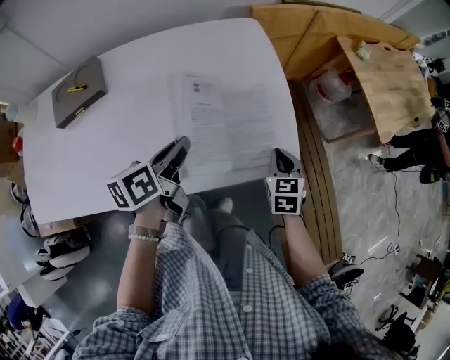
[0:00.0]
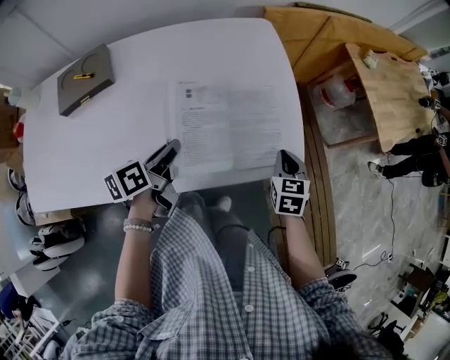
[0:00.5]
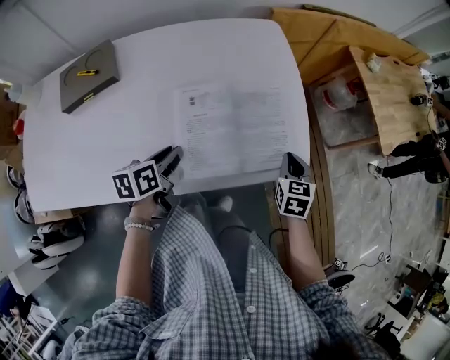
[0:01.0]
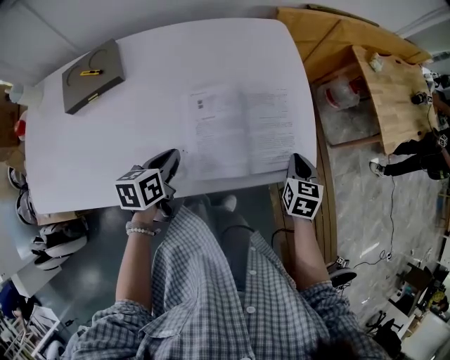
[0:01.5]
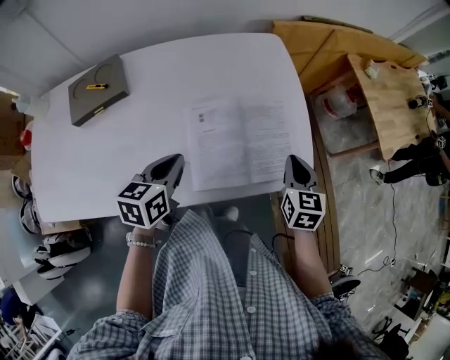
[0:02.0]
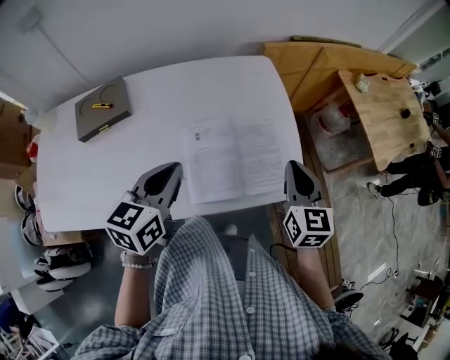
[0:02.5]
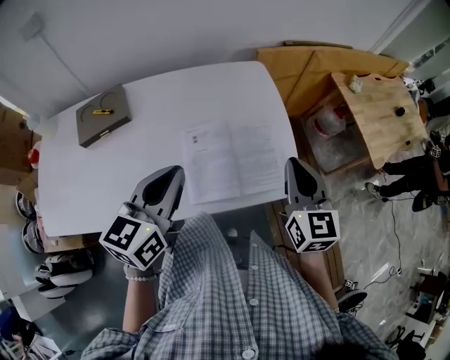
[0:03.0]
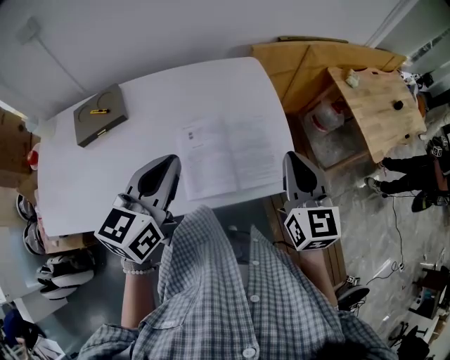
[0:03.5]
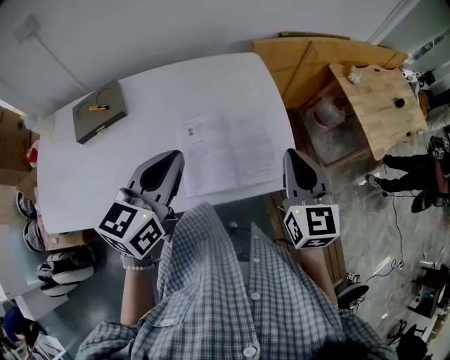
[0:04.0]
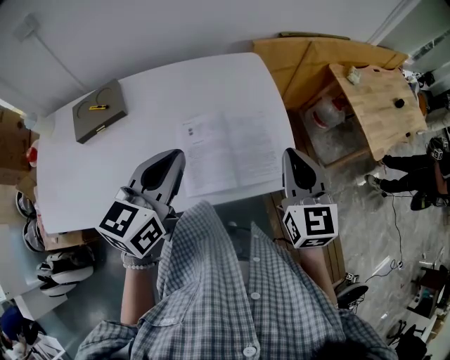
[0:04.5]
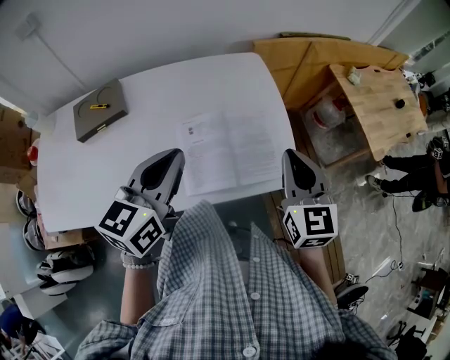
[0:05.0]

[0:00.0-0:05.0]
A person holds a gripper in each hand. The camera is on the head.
0:00.0 to 0:02.5: The right gripper moves upward, some 15 cm, and changes its angle by roughly 20 degrees, while the left gripper is displaced upward and to the left by some 10 cm, and turns by roughly 40 degrees.
0:02.5 to 0:05.0: Both grippers move upward, approximately 5 cm.

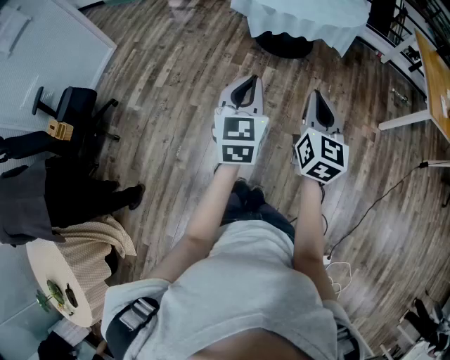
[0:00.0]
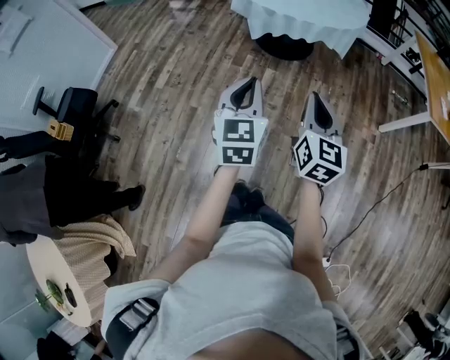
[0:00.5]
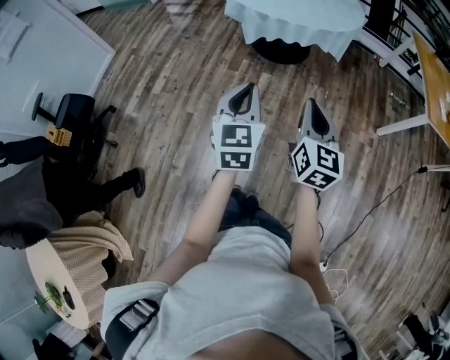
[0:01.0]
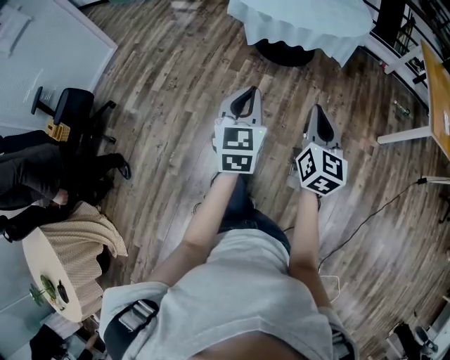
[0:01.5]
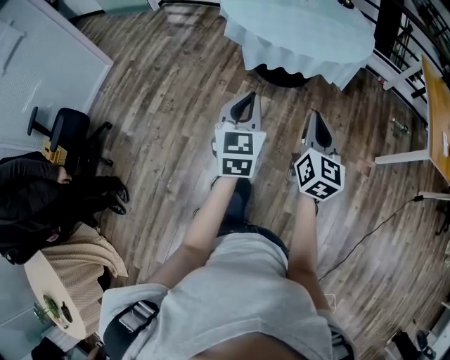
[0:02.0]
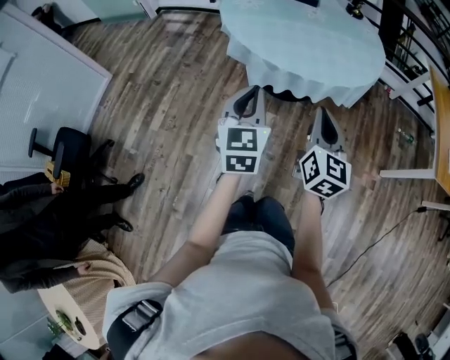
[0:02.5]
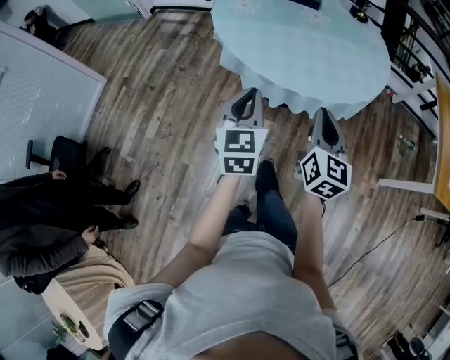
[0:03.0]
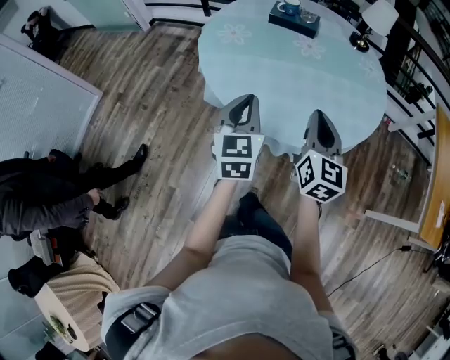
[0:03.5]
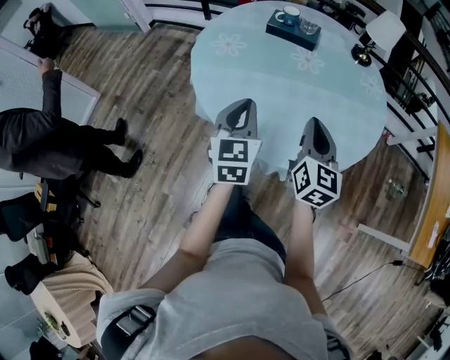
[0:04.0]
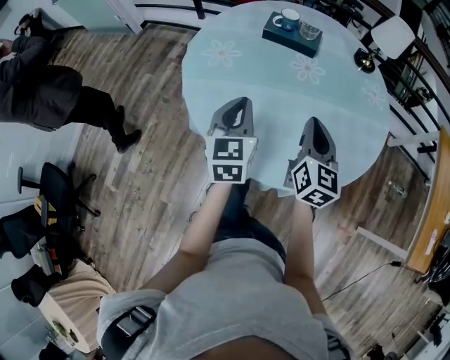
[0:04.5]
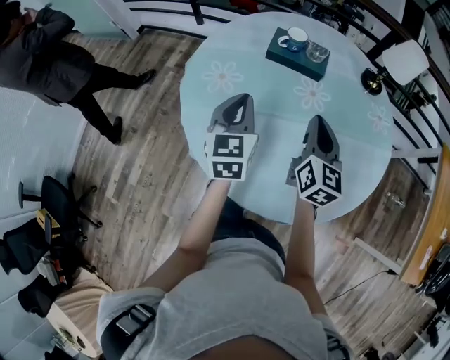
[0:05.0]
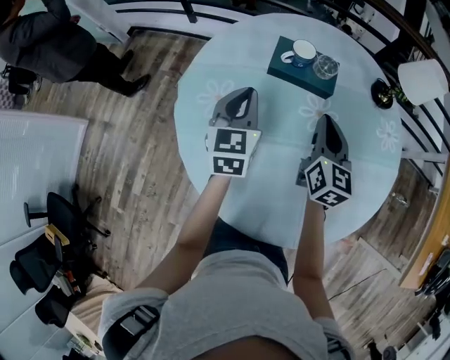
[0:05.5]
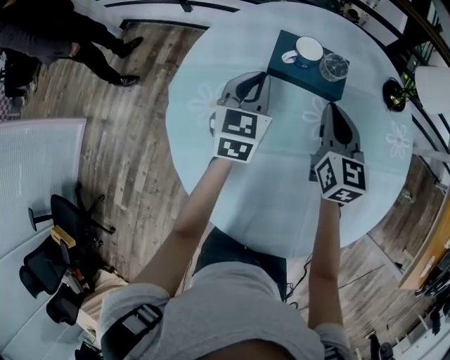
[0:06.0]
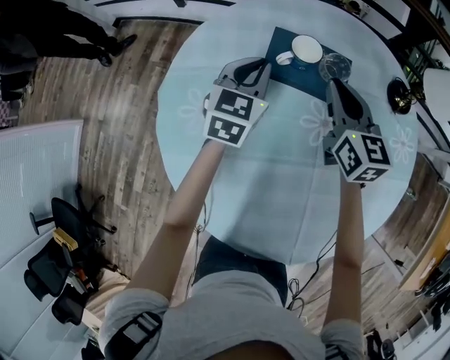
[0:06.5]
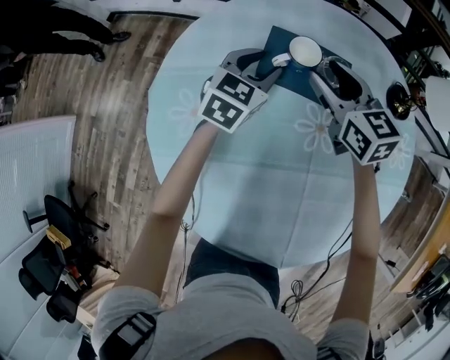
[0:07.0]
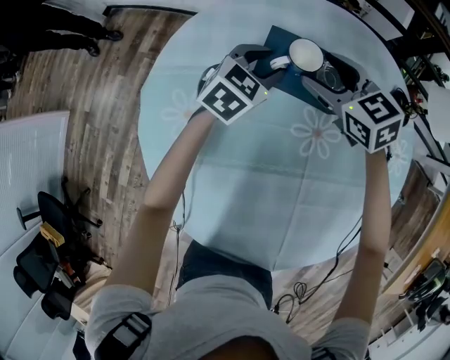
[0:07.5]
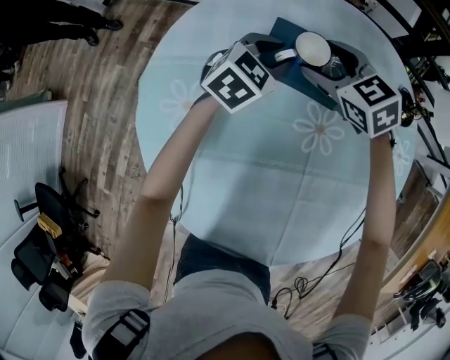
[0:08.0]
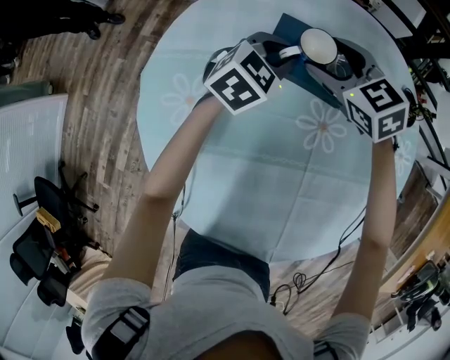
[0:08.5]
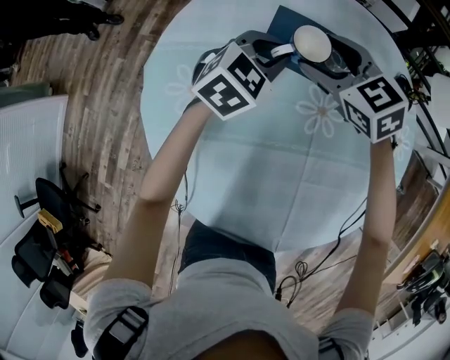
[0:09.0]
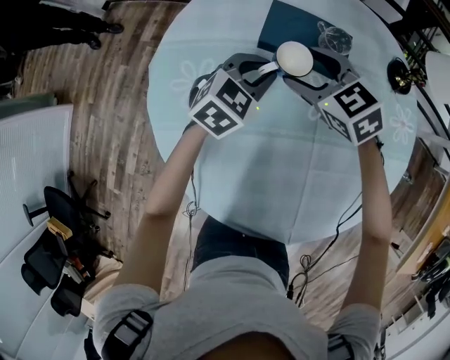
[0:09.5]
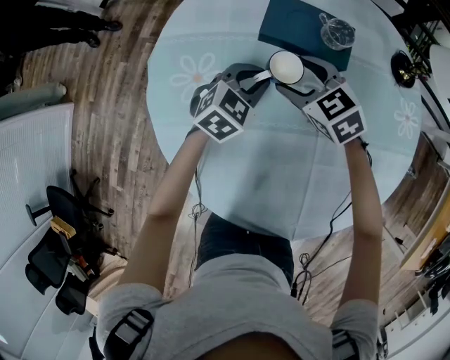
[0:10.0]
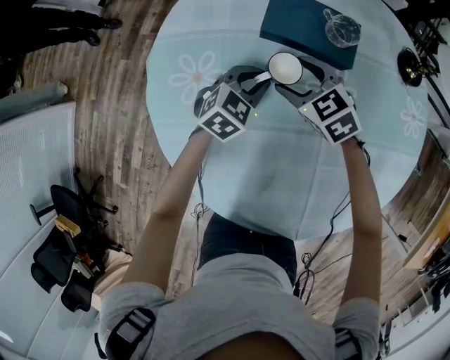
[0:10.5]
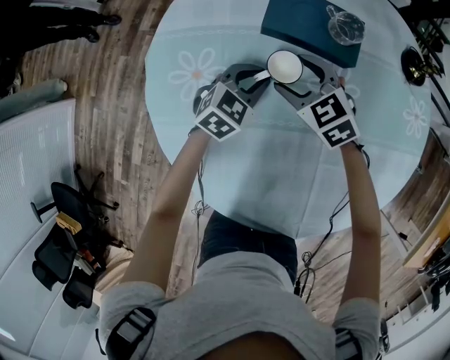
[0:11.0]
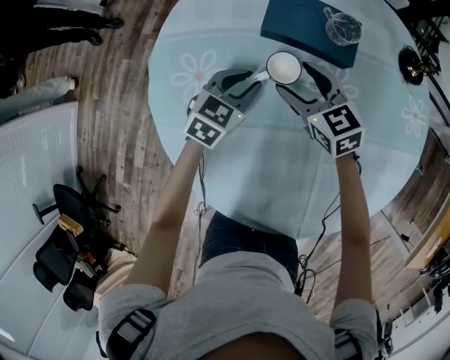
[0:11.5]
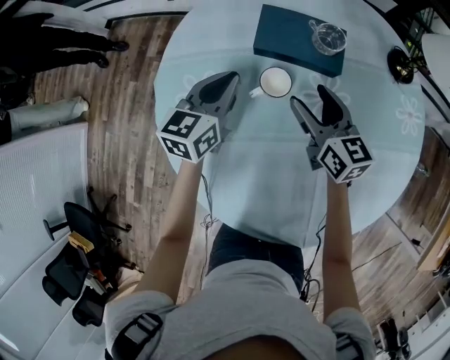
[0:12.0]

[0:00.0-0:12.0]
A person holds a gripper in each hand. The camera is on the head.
0:00.0 to 0:02.0: Both grippers travel together forward, some 20 cm.
0:02.0 to 0:04.0: Both grippers are carried forward, approximately 50 cm.
0:04.0 to 0:06.0: The two grippers travel together, forward, about 40 cm.
0:06.0 to 0:08.0: The left gripper goes some 15 cm forward, downward and to the right, swivels some 30 degrees, and opens its fingers. The right gripper moves forward and downward, approximately 15 cm, rotates about 50 degrees, and opens.
0:08.0 to 0:10.0: The two grippers go roughly 15 cm backward.
0:10.0 to 0:12.0: The right gripper shifts roughly 5 cm to the right, and turns by approximately 50 degrees, while the left gripper heads upward and to the left, covering approximately 10 cm, and changes its angle by some 40 degrees.

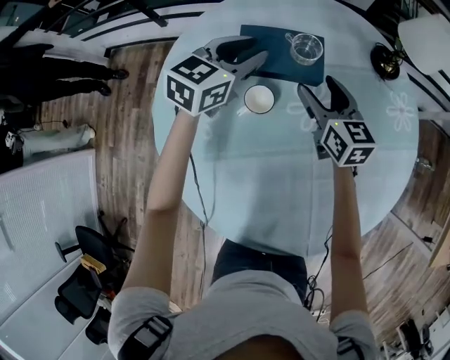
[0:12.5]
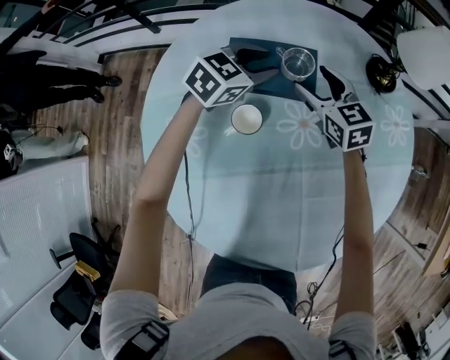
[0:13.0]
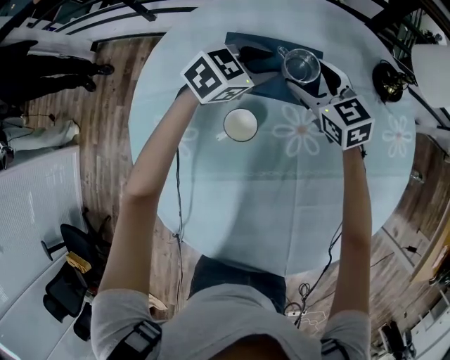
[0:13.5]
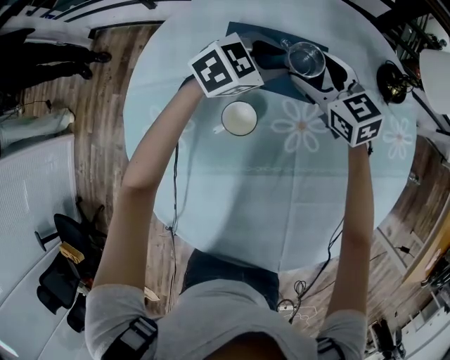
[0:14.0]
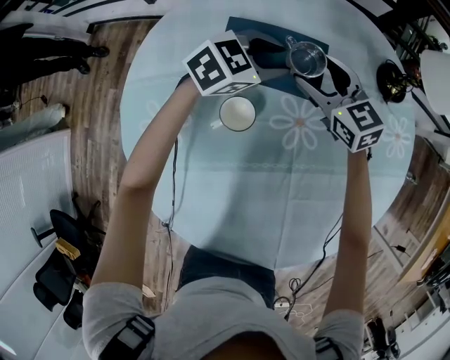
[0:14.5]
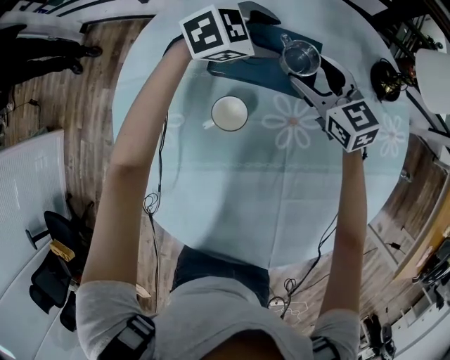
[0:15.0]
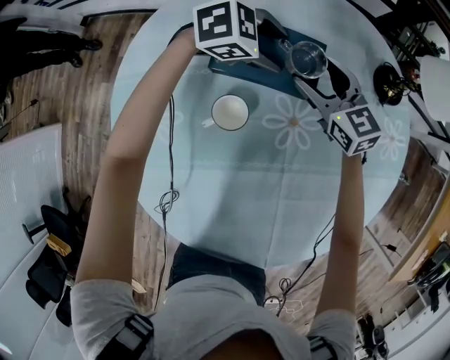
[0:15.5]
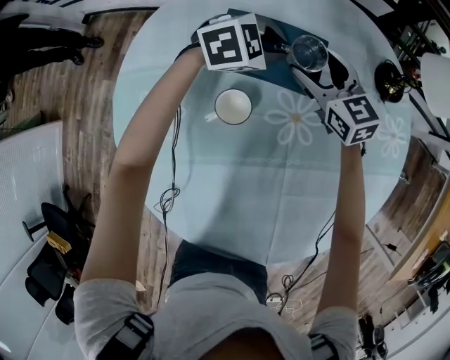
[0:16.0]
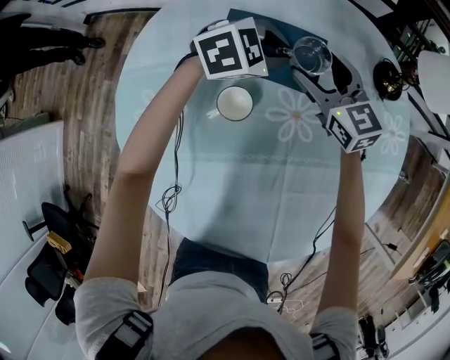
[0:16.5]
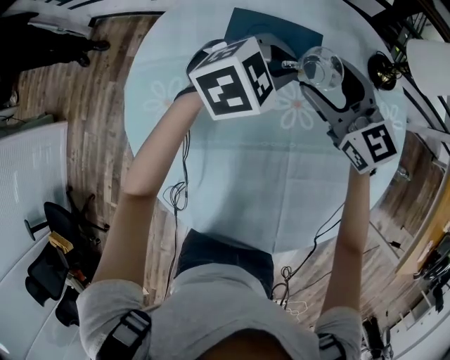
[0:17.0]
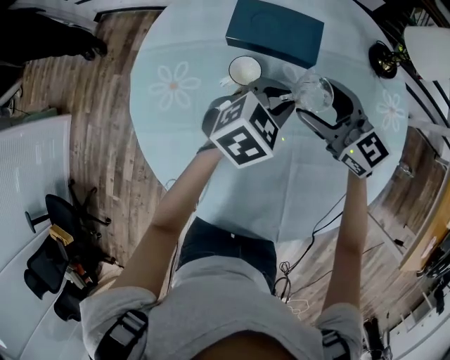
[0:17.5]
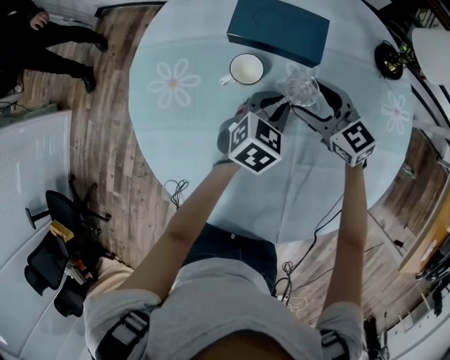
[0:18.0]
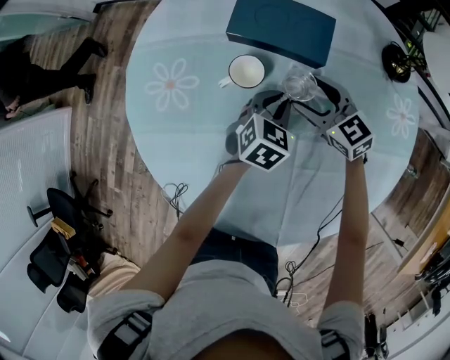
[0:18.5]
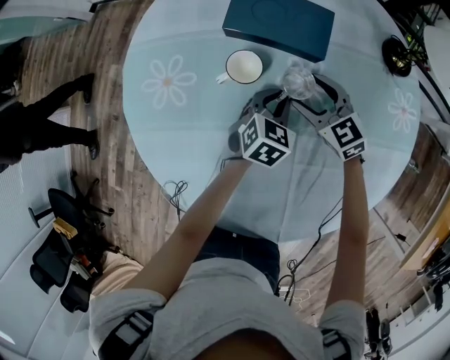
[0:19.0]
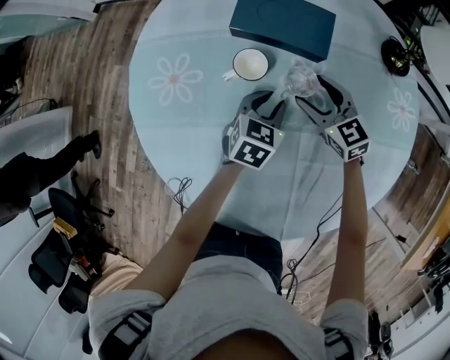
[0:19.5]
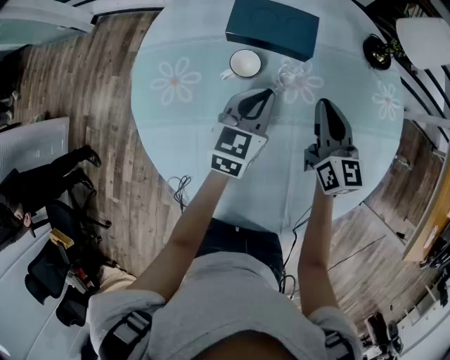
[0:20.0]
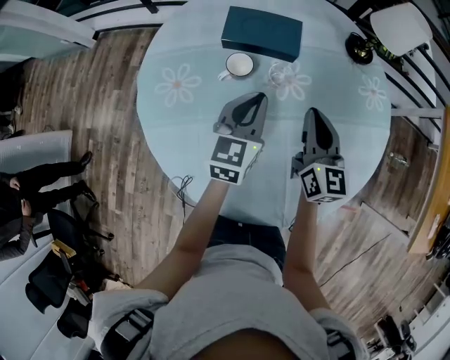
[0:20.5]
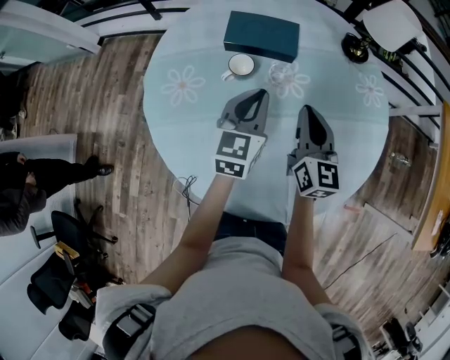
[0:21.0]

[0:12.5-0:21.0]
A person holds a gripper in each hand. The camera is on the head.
0:12.5 to 0:14.5: The right gripper shifts about 10 cm forward, and changes its angle by some 30 degrees, while the left gripper goes roughly 15 cm downward, to the right and forward, and changes its angle by roughly 20 degrees.
0:14.5 to 0:16.5: The left gripper opens and closes again.
0:16.5 to 0:19.0: The right gripper changes place by some 15 cm, and turns by about 20 degrees. Meanwhile the left gripper shifts by roughly 20 cm, and rotates roughly 50 degrees.
0:19.0 to 0:21.0: The left gripper heads upward, covering about 20 cm, and changes its angle by about 30 degrees. Meanwhile the right gripper is displaced upward and backward by about 20 cm, swivels roughly 60 degrees, and closes its fingers.

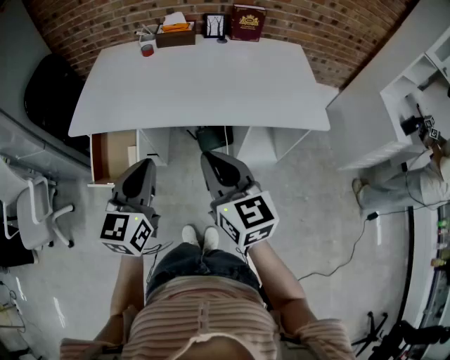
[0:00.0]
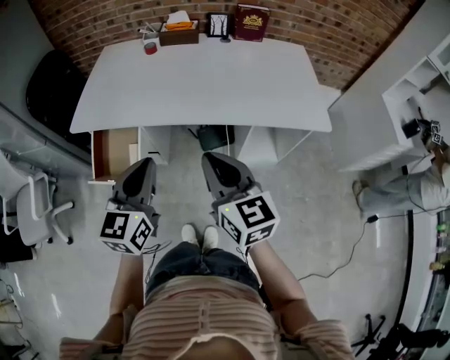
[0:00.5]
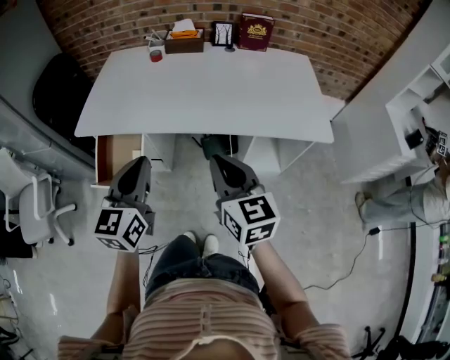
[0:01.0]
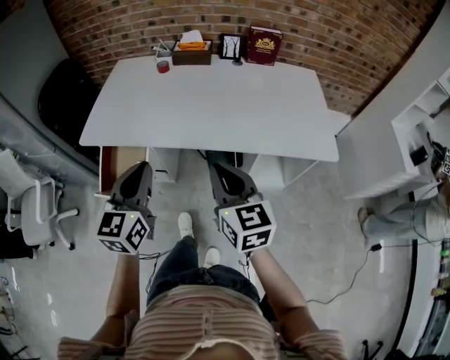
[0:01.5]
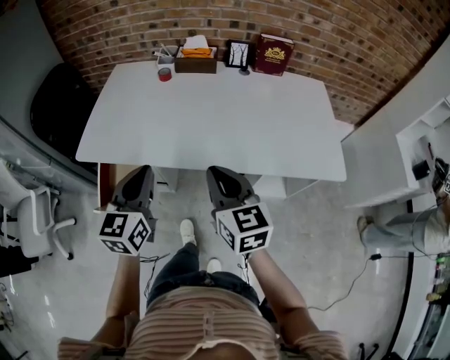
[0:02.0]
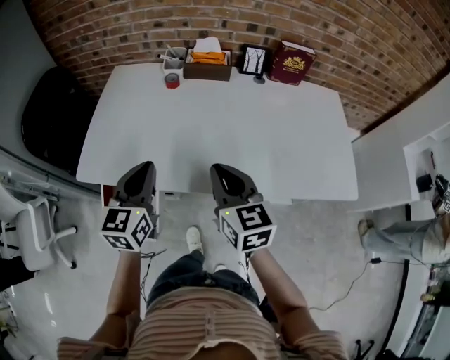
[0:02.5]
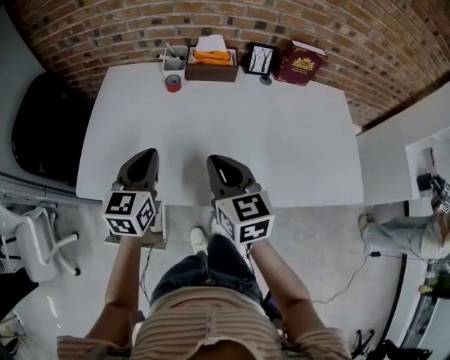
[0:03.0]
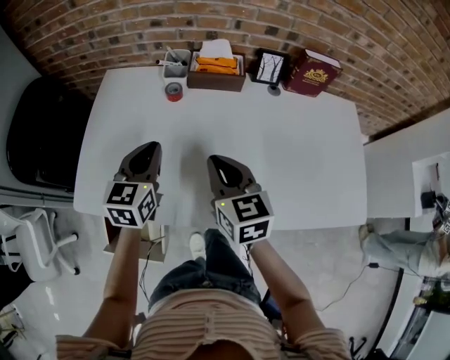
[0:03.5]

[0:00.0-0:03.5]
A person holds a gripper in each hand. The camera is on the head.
0:00.0 to 0:02.0: The grippers both shift forward by approximately 15 cm.
0:02.0 to 0:03.5: The grippers both shift forward by roughly 30 cm.
